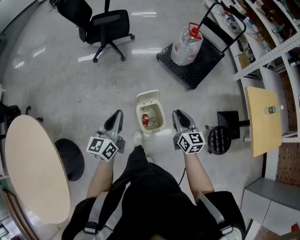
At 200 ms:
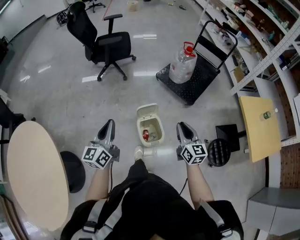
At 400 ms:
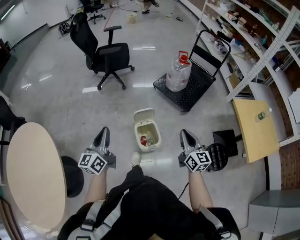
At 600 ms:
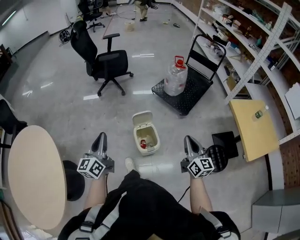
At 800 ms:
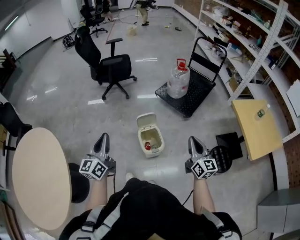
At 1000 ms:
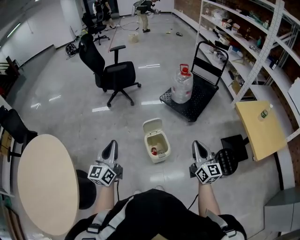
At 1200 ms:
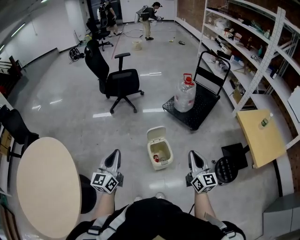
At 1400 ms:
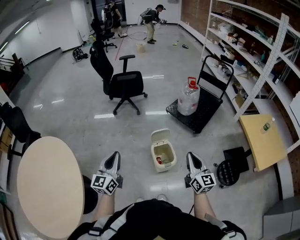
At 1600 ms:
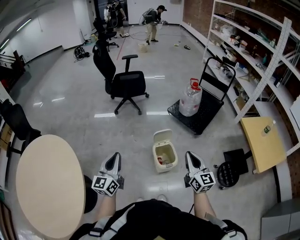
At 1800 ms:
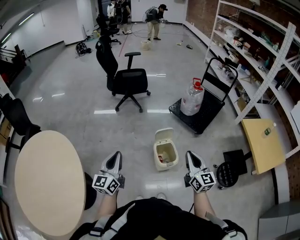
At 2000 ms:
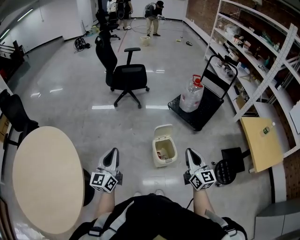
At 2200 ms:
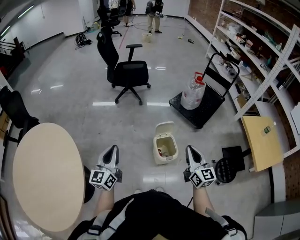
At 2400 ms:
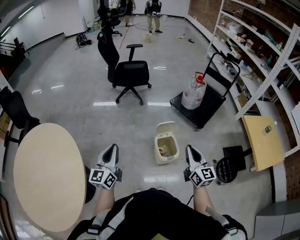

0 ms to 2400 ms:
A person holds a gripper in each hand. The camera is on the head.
0 ms to 1200 ms: The grippers both shift backward and upward by roughly 20 cm.
1200 ms to 2400 ms: The two grippers go roughly 10 cm to the left.

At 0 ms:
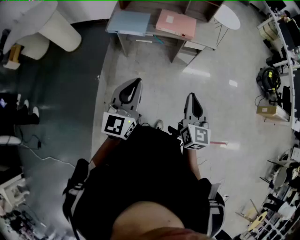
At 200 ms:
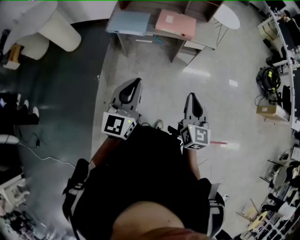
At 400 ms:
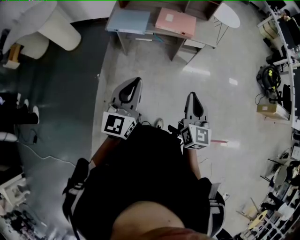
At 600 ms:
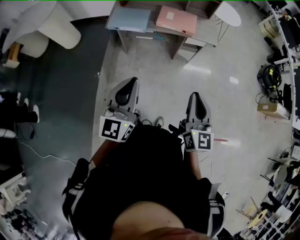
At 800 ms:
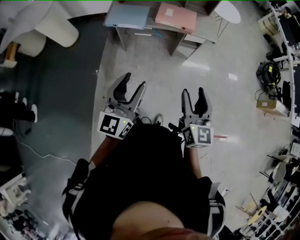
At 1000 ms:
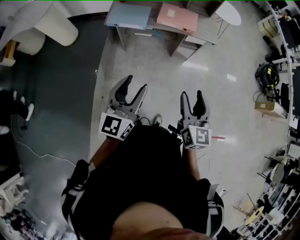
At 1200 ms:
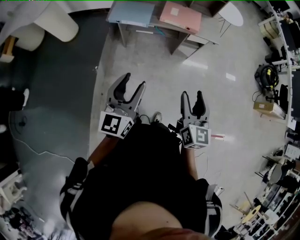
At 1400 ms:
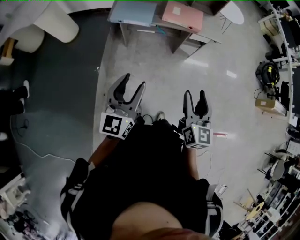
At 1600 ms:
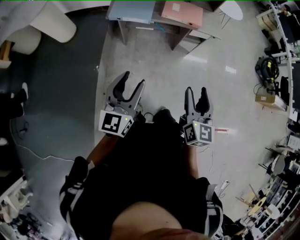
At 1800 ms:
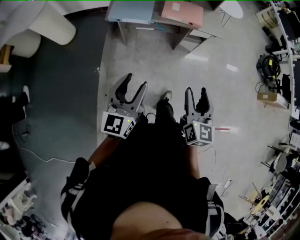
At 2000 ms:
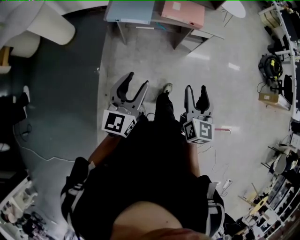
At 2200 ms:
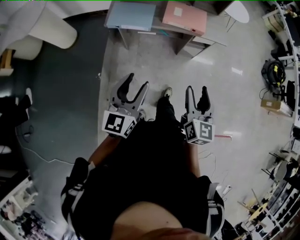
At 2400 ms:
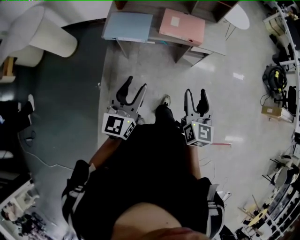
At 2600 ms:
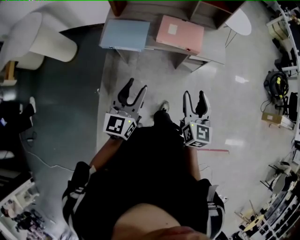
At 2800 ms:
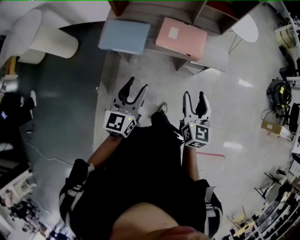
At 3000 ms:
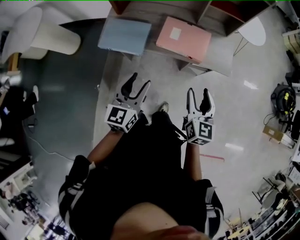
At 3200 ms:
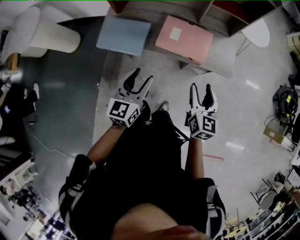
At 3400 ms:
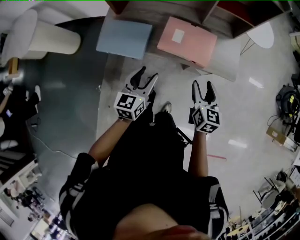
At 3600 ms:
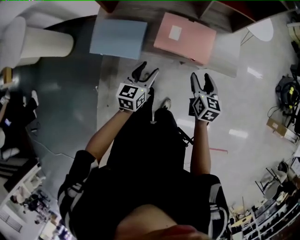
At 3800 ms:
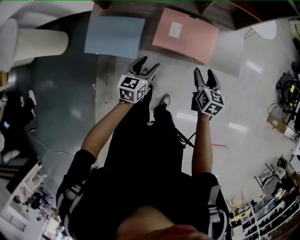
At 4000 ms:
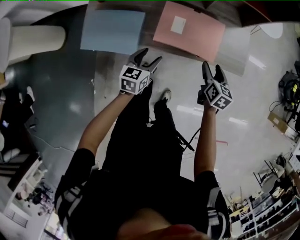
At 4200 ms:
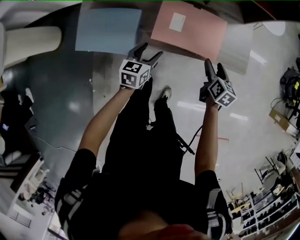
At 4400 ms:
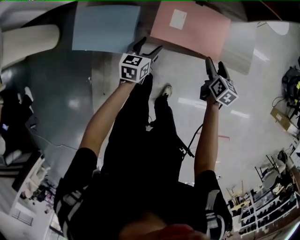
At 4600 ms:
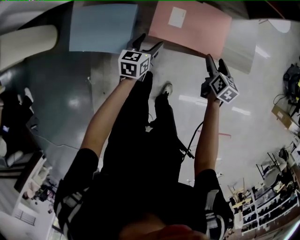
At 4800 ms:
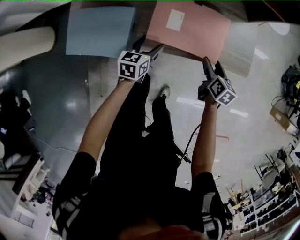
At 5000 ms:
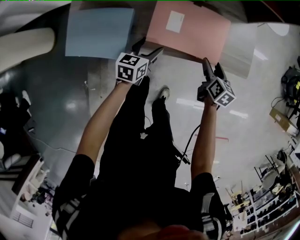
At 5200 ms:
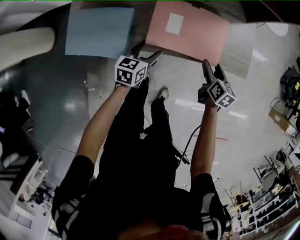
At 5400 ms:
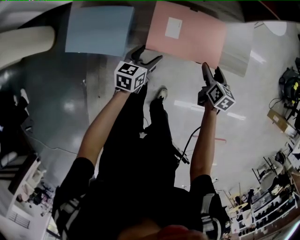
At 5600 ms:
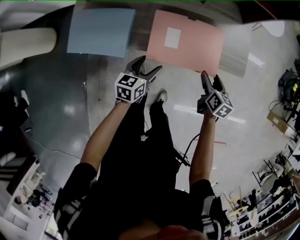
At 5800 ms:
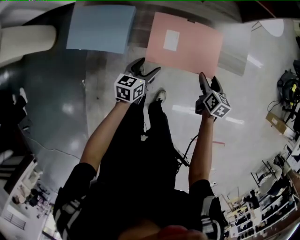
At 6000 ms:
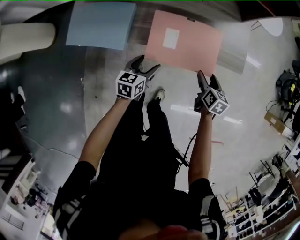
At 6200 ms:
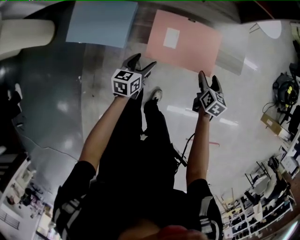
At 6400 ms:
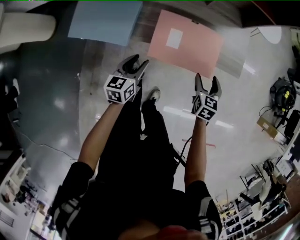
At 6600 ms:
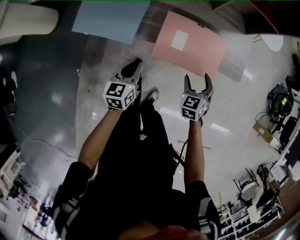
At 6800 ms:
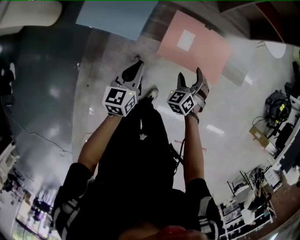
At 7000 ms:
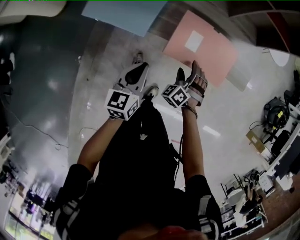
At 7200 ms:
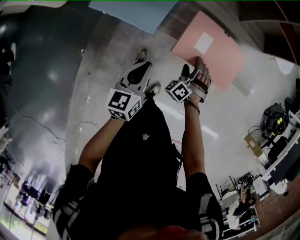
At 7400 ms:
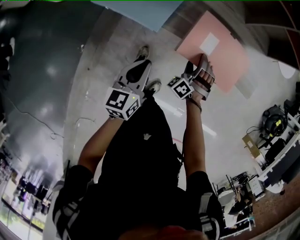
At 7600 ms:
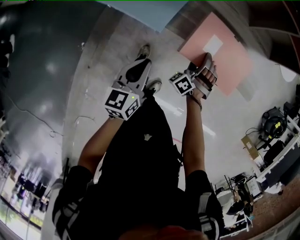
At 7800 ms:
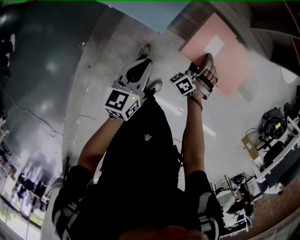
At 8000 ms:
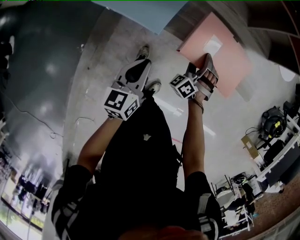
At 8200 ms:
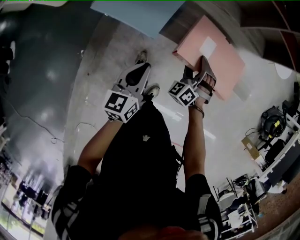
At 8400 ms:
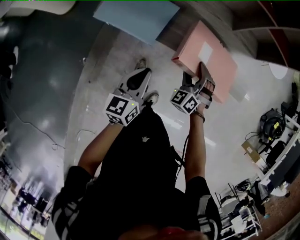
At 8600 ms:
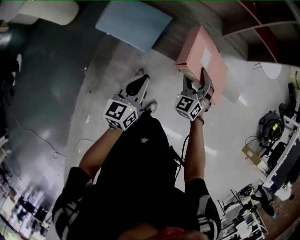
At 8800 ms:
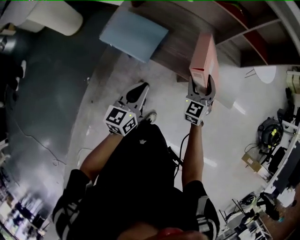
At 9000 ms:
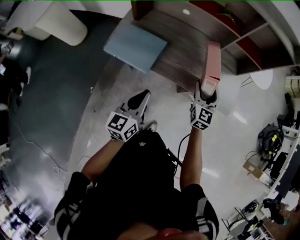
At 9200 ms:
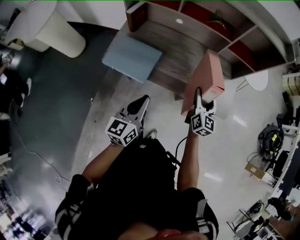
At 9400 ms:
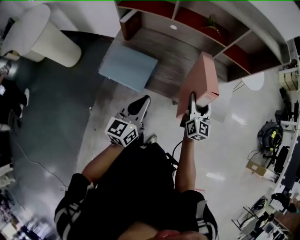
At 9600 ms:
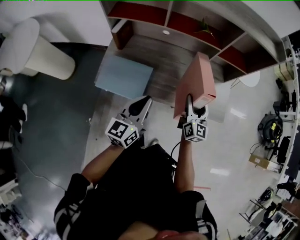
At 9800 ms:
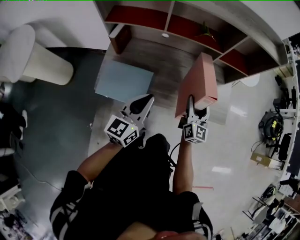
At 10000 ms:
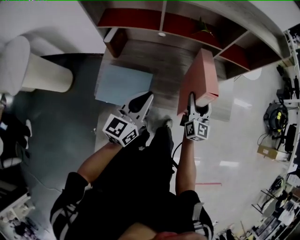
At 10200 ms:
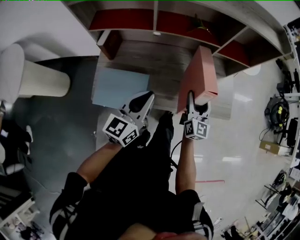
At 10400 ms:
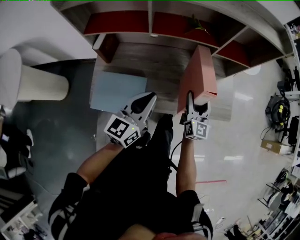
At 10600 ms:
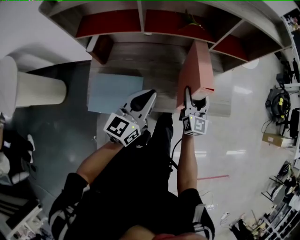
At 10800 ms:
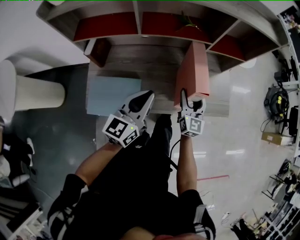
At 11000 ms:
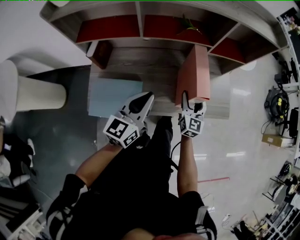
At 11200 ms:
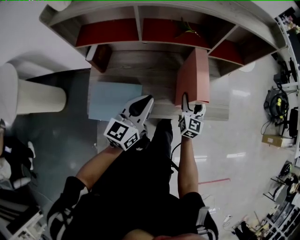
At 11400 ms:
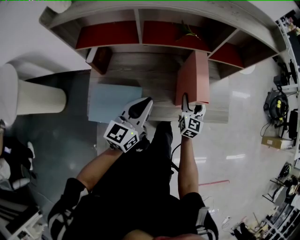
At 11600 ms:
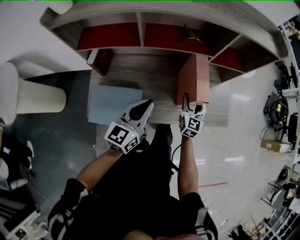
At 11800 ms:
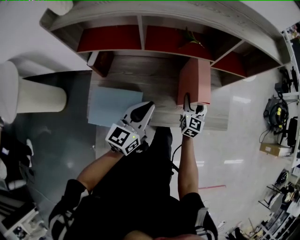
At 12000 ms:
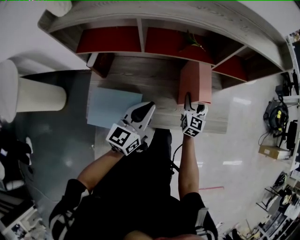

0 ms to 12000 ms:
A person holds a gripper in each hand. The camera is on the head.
0 ms to 1600 ms: The two grippers go some 10 cm to the left. The left gripper opens its fingers, while the right gripper opens its fingers.
1600 ms to 3000 ms: Both grippers travel together forward, about 35 cm.
3000 ms to 4400 ms: The two grippers go some 35 cm downward and forward. The left gripper swivels roughly 30 degrees. The right gripper rotates approximately 30 degrees.
4400 ms to 6000 ms: Both grippers travel together backward, some 10 cm.
6000 ms to 7600 ms: The right gripper goes some 20 cm to the left, and rotates around the line of its fingers by some 100 degrees, counterclockwise from behind; the left gripper heads to the left, backward and upward, covering some 15 cm, changes its angle by approximately 30 degrees, and closes its fingers.
7600 ms to 9000 ms: The right gripper moves upward, approximately 25 cm, and rolls clockwise, seen from behind, by roughly 70 degrees. Meanwhile the left gripper moves upward, about 15 cm.
9000 ms to 10400 ms: The right gripper moves forward, roughly 10 cm, and swivels some 30 degrees, while the left gripper is displaced forward by approximately 20 cm, and turns by some 30 degrees.
10400 ms to 12000 ms: The right gripper heads forward and downward, covering approximately 10 cm. Meanwhile the left gripper heads forward, covering roughly 5 cm.

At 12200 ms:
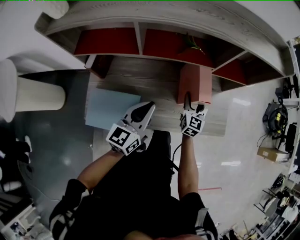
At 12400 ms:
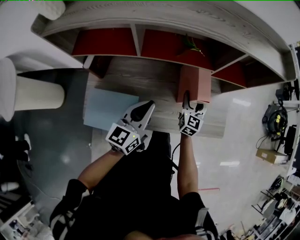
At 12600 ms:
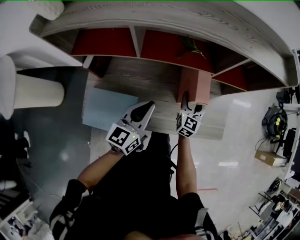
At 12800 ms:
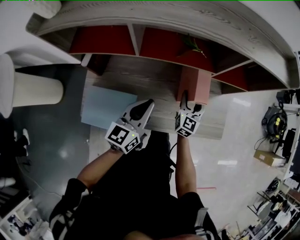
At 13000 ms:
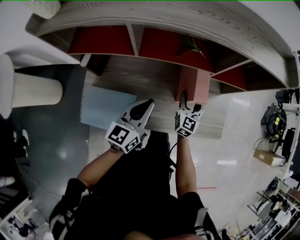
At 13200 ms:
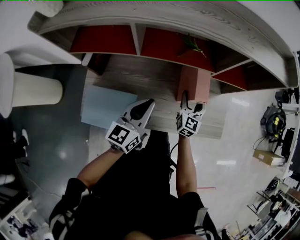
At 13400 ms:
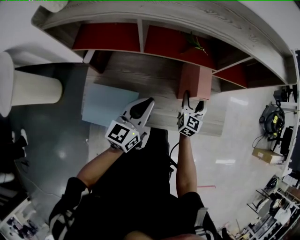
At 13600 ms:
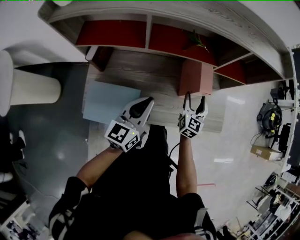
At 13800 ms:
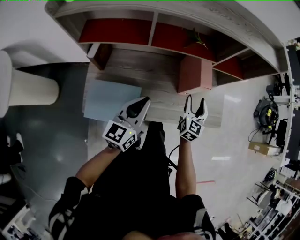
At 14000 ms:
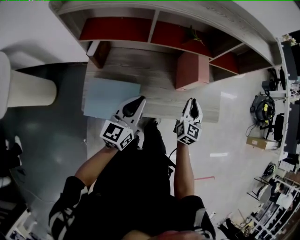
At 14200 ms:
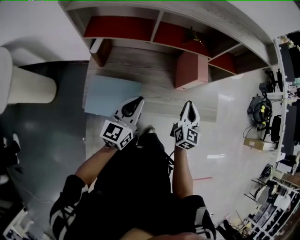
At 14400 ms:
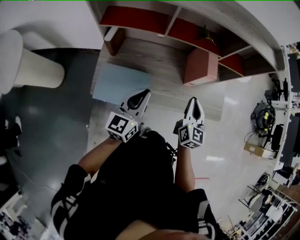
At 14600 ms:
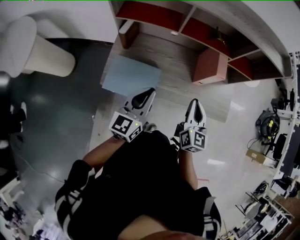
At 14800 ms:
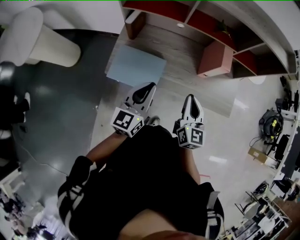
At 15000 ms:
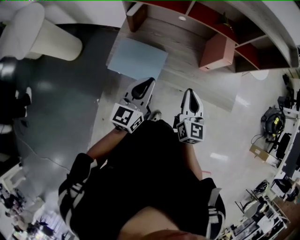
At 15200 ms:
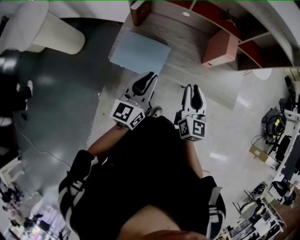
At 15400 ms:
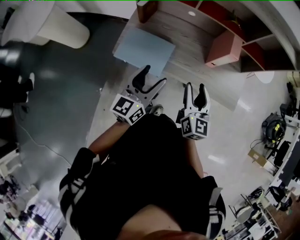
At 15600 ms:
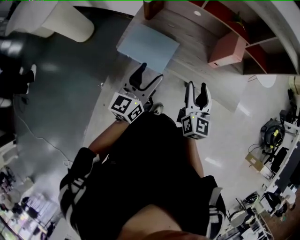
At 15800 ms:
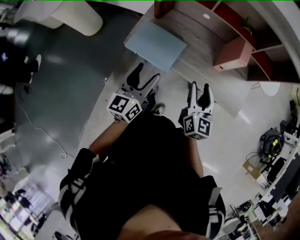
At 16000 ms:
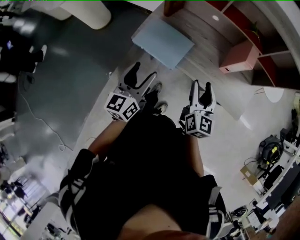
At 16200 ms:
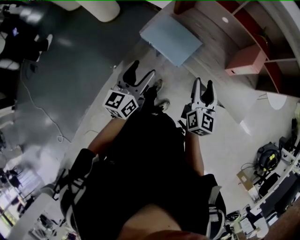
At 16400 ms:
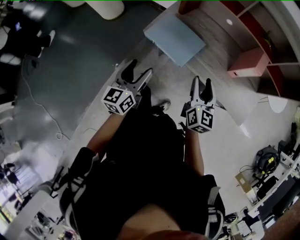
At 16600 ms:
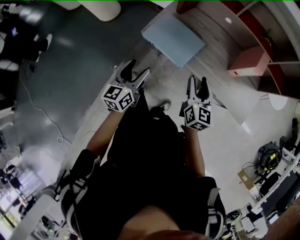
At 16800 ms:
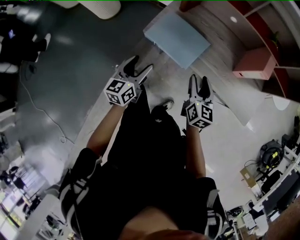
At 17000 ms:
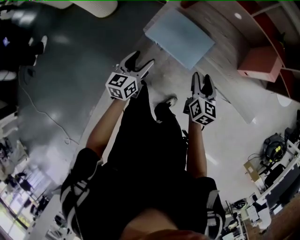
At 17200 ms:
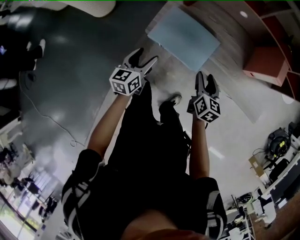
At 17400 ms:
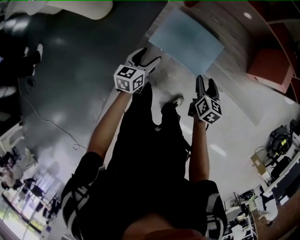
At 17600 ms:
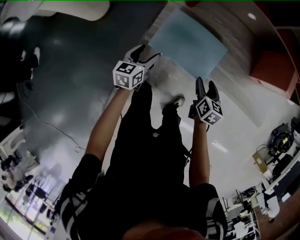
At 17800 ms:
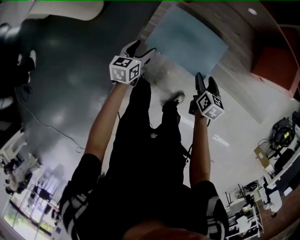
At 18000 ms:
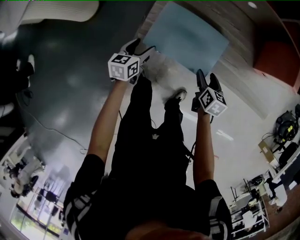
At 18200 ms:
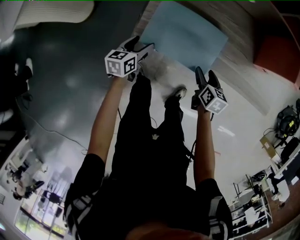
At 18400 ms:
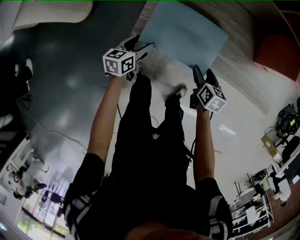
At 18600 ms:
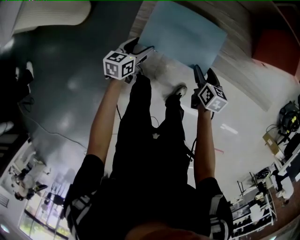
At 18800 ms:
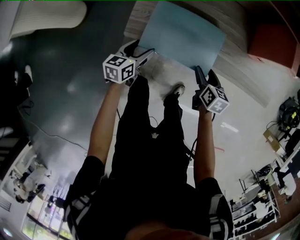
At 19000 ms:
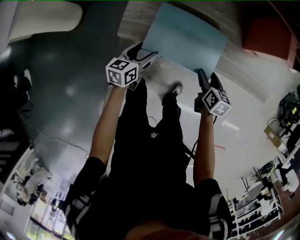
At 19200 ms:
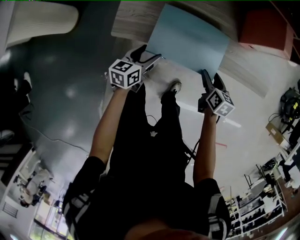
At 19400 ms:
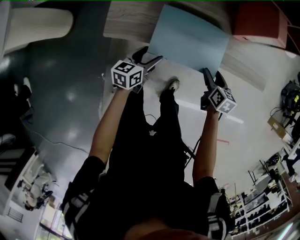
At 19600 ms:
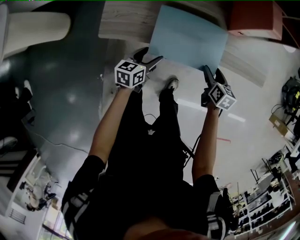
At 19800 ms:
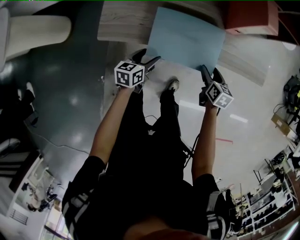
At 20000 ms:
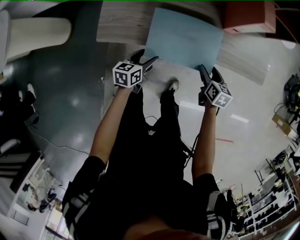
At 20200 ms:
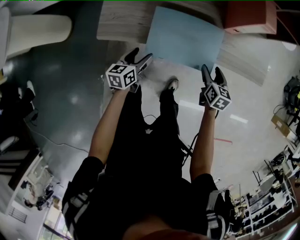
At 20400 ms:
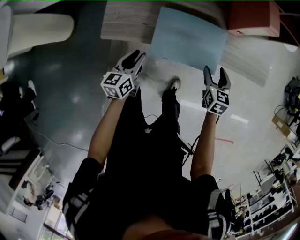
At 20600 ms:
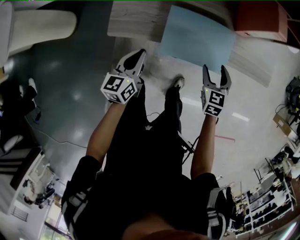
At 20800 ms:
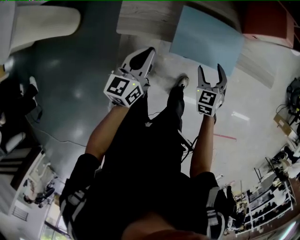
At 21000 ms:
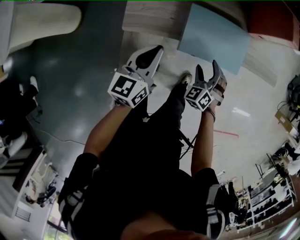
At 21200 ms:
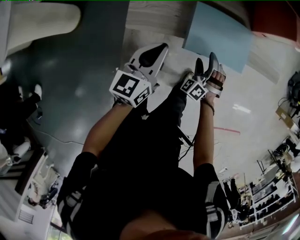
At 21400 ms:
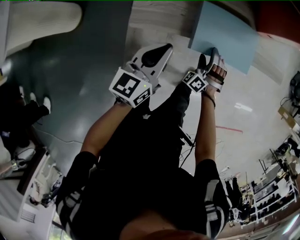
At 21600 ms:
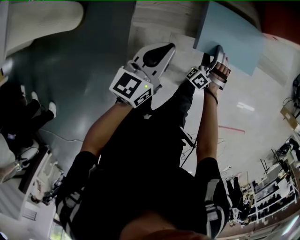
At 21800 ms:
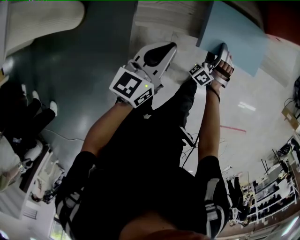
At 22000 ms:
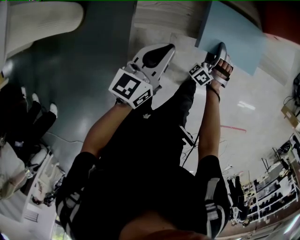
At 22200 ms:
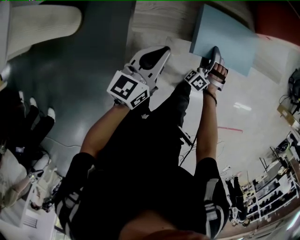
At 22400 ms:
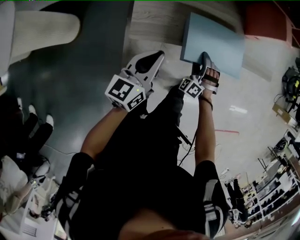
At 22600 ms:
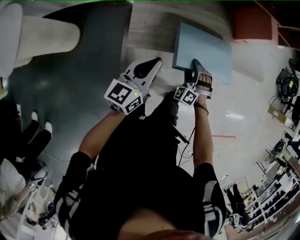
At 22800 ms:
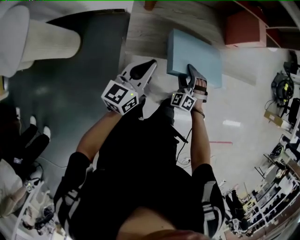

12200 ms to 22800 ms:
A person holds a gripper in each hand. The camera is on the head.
12200 ms to 13800 ms: The left gripper moves about 5 cm. The right gripper shifts about 5 cm backward.
13800 ms to 15200 ms: The left gripper shifts about 15 cm backward; the right gripper goes some 25 cm backward, upward and to the left, swivels about 30 degrees, and closes up.
15200 ms to 16800 ms: The right gripper moves to the left and downward, approximately 15 cm, while the left gripper heads to the left and downward, covering about 20 cm, turns by some 20 degrees, and opens up.
16800 ms to 18200 ms: The left gripper moves downward and forward, approximately 30 cm, and rotates roughly 30 degrees; the right gripper goes about 20 cm downward, and rotates approximately 30 degrees.
18200 ms to 19800 ms: The grippers both shift to the right by some 25 cm.
19800 ms to 21200 ms: The right gripper is displaced to the left by about 20 cm, and rotates around the line of its fingers by some 80 degrees, counterclockwise from behind; the left gripper travels upward and to the left by approximately 20 cm, changes its angle by approximately 30 degrees, and closes its fingers.
21200 ms to 22800 ms: Both grippers move upward, roughly 5 cm.
